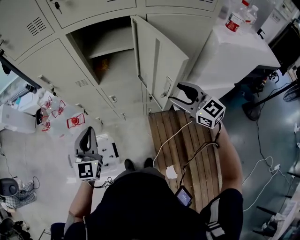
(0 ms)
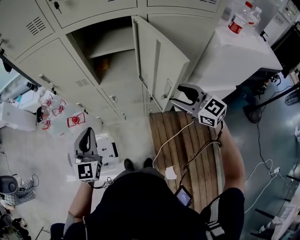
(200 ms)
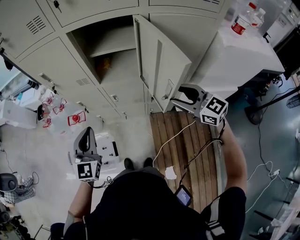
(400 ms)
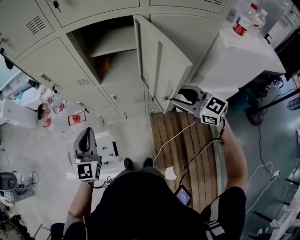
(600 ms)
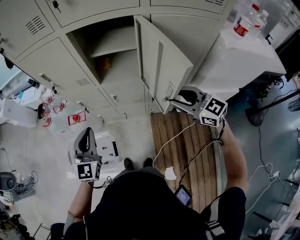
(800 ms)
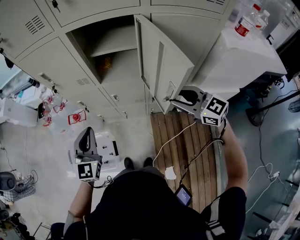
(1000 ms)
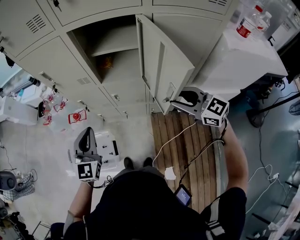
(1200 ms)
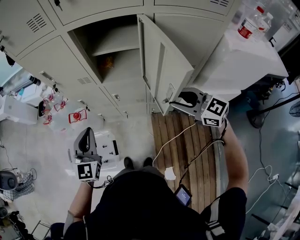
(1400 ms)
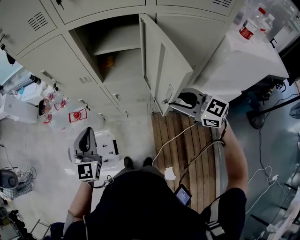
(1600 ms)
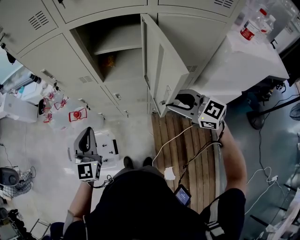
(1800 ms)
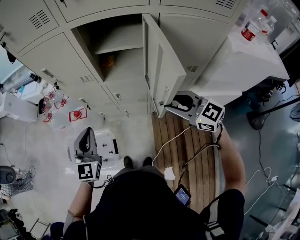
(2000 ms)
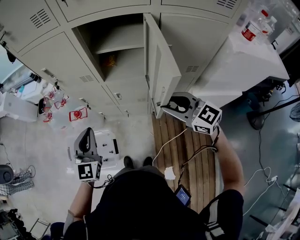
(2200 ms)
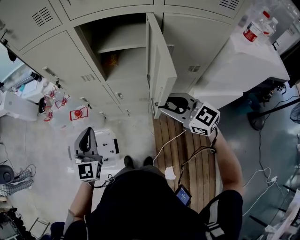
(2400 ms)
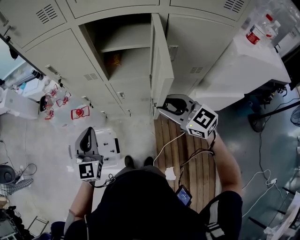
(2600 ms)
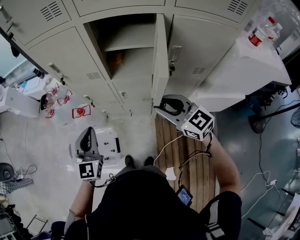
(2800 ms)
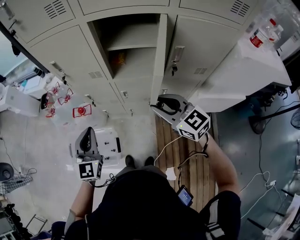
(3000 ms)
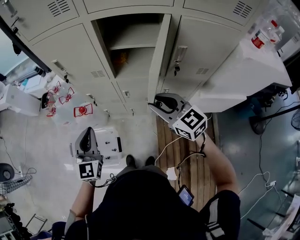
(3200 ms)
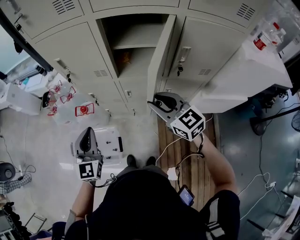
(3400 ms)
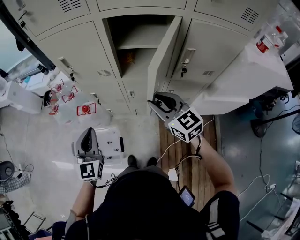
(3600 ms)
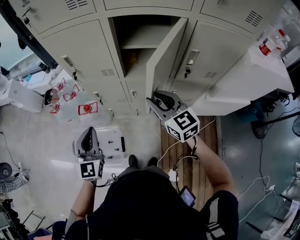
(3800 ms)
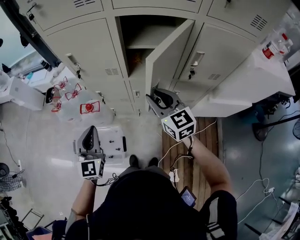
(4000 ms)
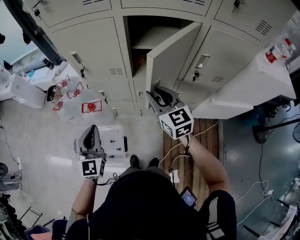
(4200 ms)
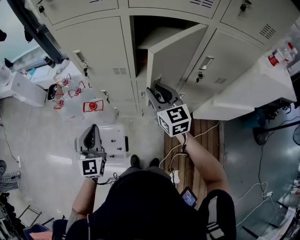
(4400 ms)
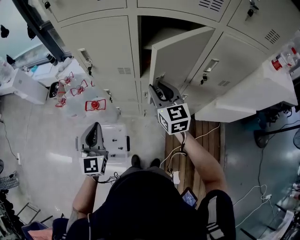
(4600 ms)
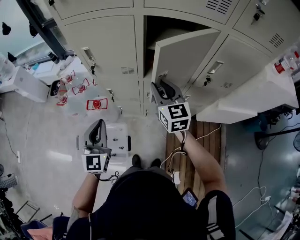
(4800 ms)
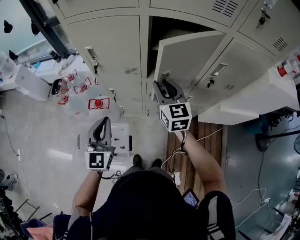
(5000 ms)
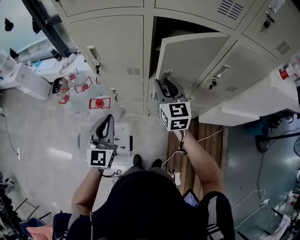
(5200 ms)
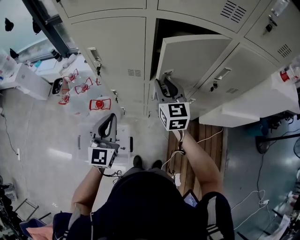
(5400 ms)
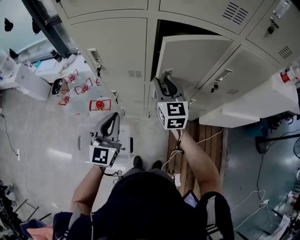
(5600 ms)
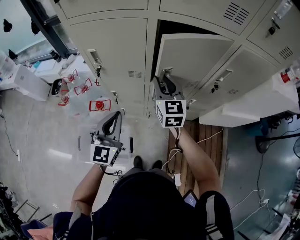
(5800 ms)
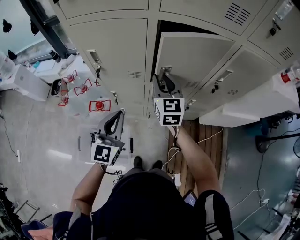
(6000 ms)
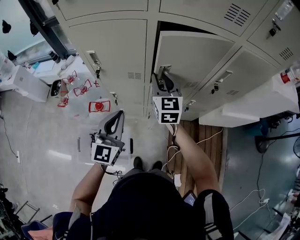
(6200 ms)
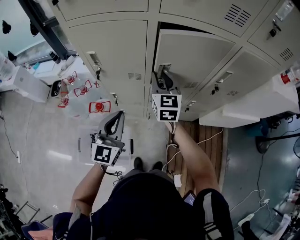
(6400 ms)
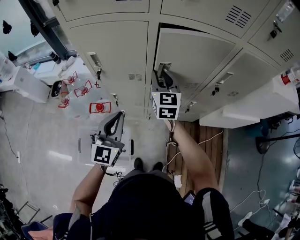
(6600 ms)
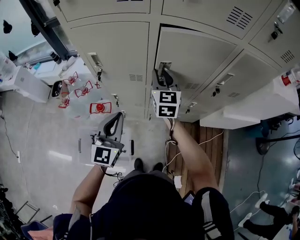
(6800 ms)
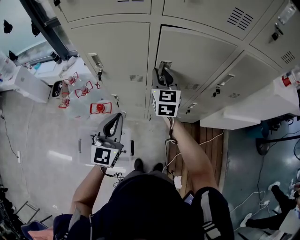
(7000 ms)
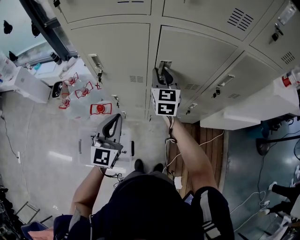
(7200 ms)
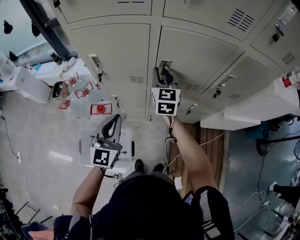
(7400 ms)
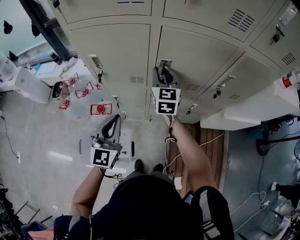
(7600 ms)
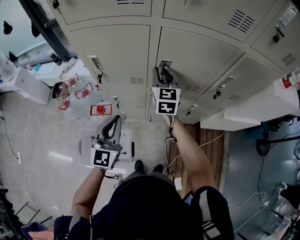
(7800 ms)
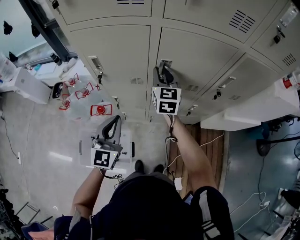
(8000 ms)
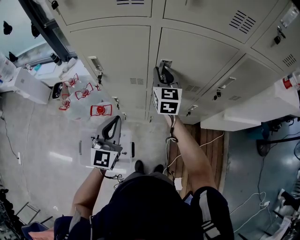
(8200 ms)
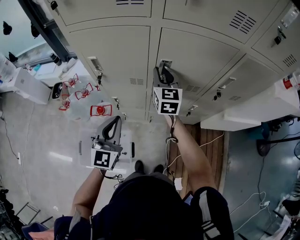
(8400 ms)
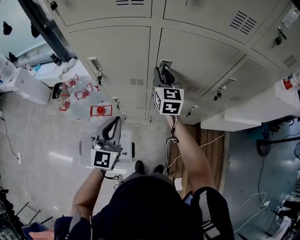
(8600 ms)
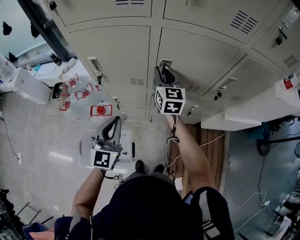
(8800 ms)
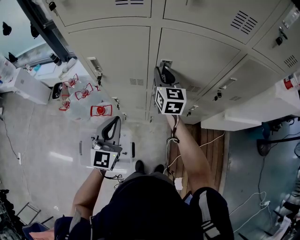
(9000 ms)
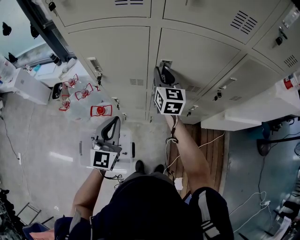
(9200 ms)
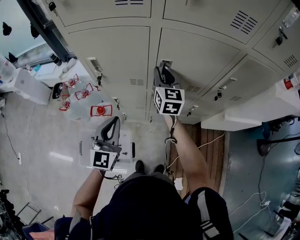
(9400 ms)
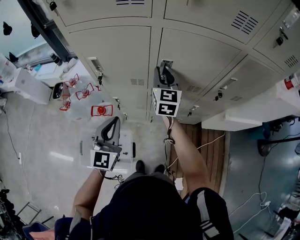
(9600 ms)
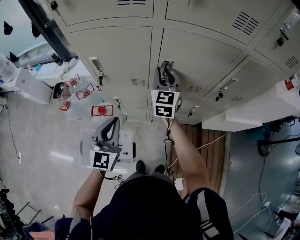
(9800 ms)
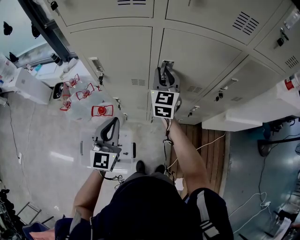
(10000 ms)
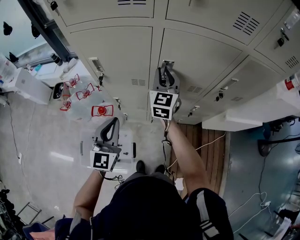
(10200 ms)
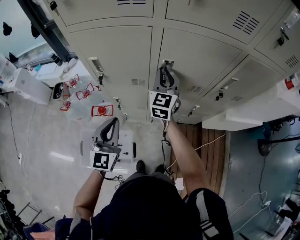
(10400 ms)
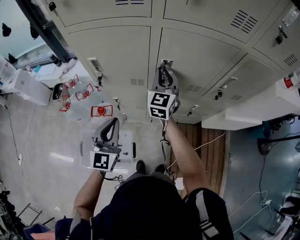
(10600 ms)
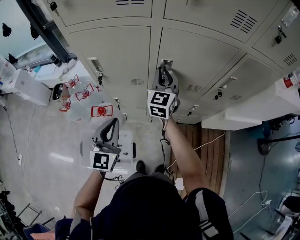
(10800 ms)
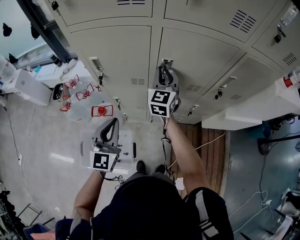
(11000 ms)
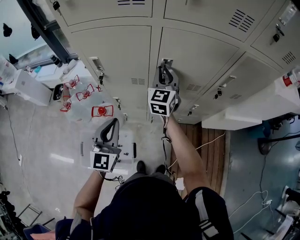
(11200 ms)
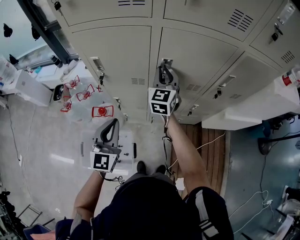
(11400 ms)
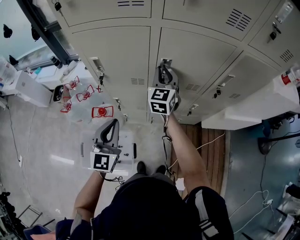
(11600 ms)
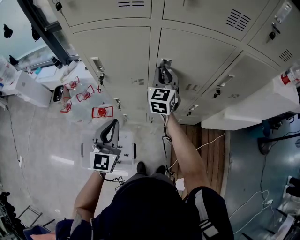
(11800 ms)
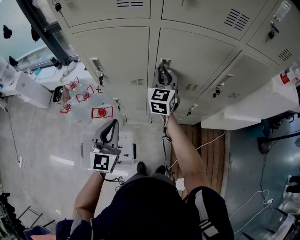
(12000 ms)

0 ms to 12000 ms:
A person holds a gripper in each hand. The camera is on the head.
0 ms to 1600 ms: The grippers move only a little.
1600 ms to 3000 ms: The left gripper heads to the left, covering roughly 5 cm. Meanwhile the right gripper heads to the left, covering approximately 10 cm.
3000 ms to 4400 ms: The right gripper travels forward and to the left by roughly 15 cm, and swivels some 20 degrees. Meanwhile the left gripper travels to the left by some 10 cm.
4400 ms to 6000 ms: The two grippers go roughly 10 cm forward.
6000 ms to 7600 ms: The right gripper is displaced forward by about 5 cm.
7600 ms to 9000 ms: The grippers move only a little.
9000 ms to 10400 ms: The right gripper changes its angle by roughly 20 degrees.
10400 ms to 12000 ms: There are only small adjustments of the grippers.

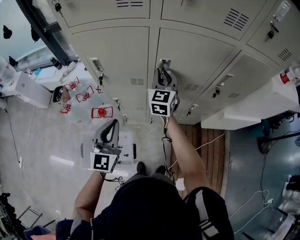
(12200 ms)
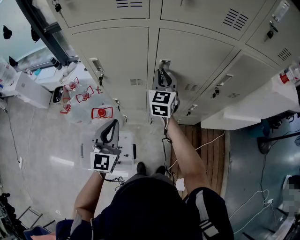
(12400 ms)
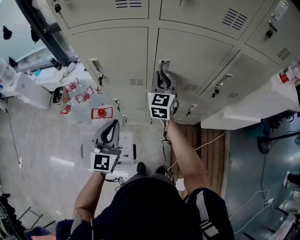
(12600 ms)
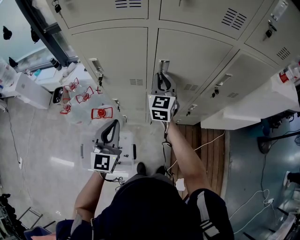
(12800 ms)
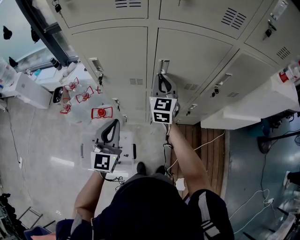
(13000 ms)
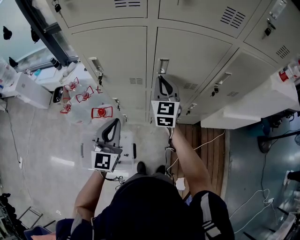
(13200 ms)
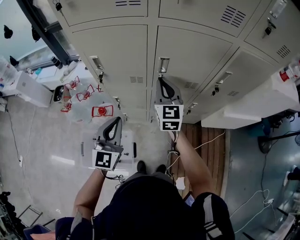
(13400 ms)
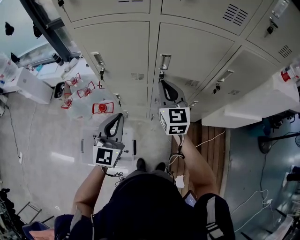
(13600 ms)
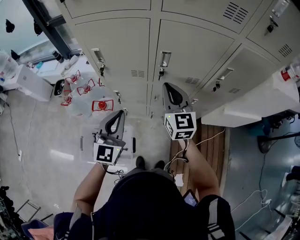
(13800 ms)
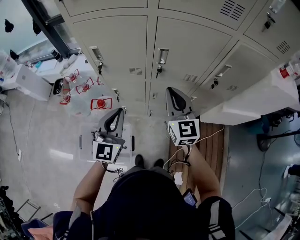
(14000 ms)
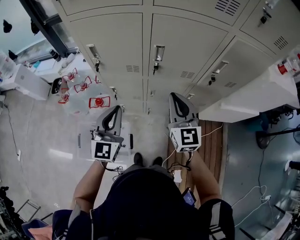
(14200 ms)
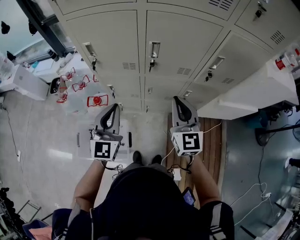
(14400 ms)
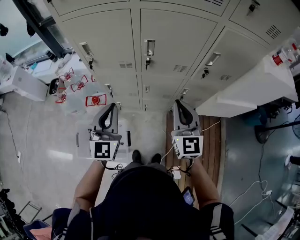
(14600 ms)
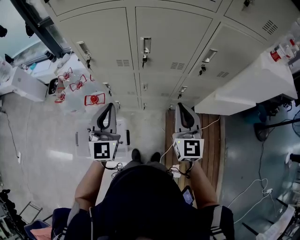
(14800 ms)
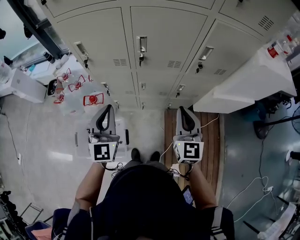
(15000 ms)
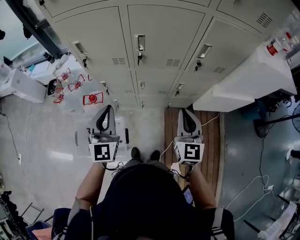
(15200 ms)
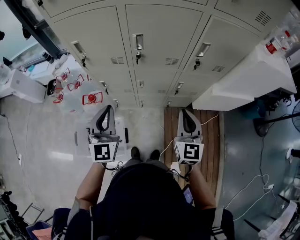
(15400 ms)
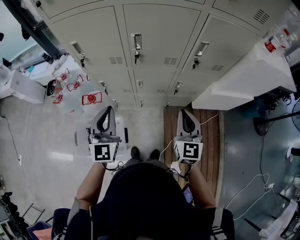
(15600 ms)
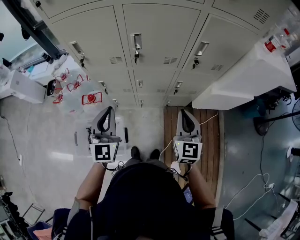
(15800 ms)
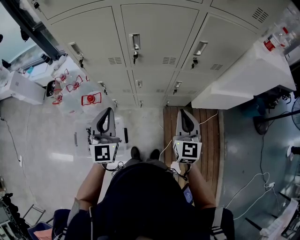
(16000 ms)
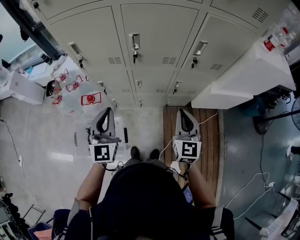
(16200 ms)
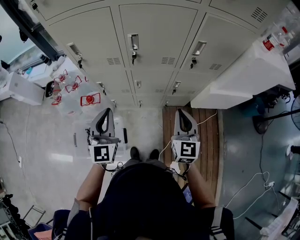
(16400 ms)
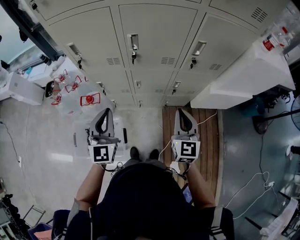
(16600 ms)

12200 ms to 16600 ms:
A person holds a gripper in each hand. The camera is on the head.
12200 ms to 13600 ms: The right gripper goes roughly 10 cm backward.
13600 ms to 15200 ms: The right gripper is displaced backward and to the right by some 25 cm. Meanwhile the left gripper shifts approximately 5 cm backward.
15200 ms to 16600 ms: The grippers move only a little.

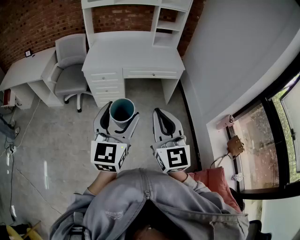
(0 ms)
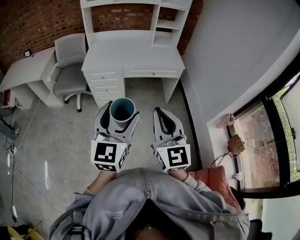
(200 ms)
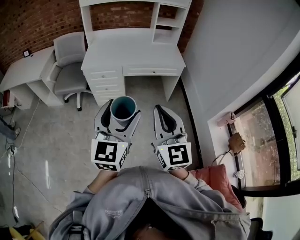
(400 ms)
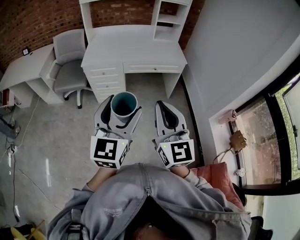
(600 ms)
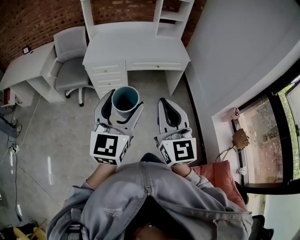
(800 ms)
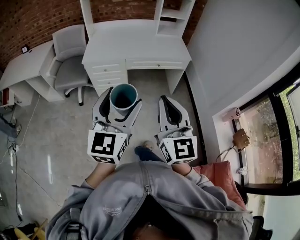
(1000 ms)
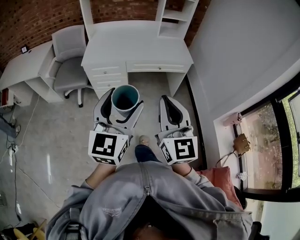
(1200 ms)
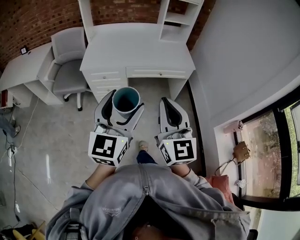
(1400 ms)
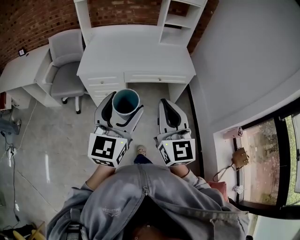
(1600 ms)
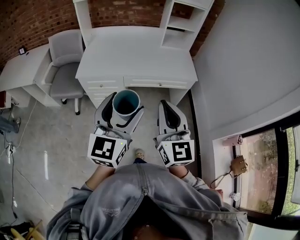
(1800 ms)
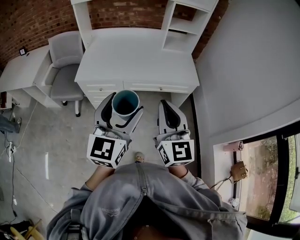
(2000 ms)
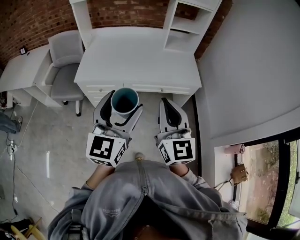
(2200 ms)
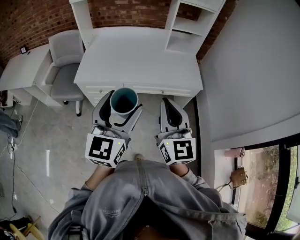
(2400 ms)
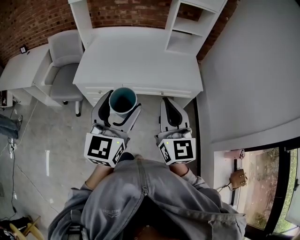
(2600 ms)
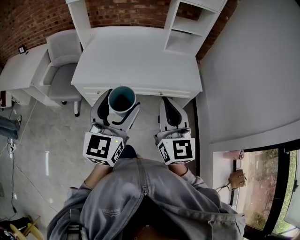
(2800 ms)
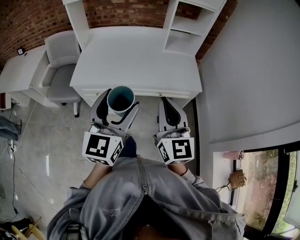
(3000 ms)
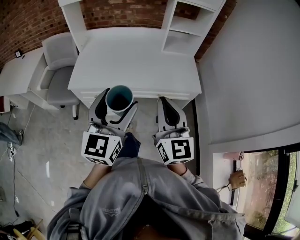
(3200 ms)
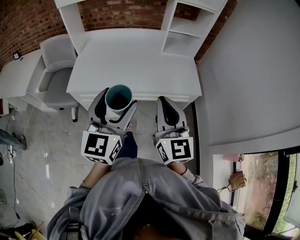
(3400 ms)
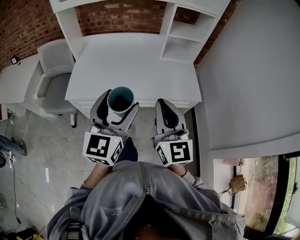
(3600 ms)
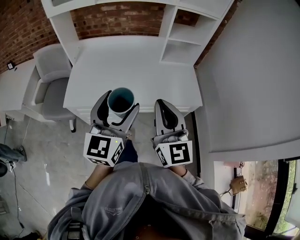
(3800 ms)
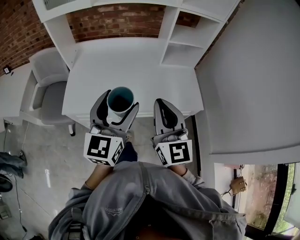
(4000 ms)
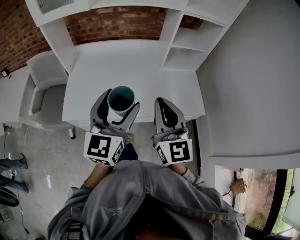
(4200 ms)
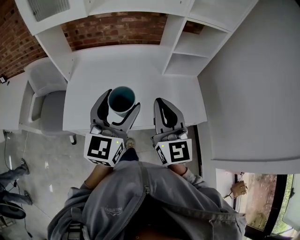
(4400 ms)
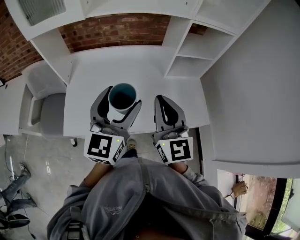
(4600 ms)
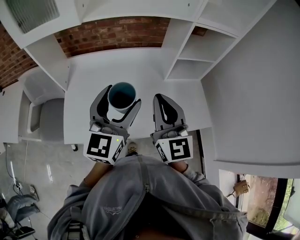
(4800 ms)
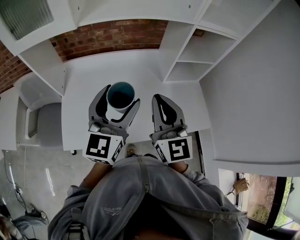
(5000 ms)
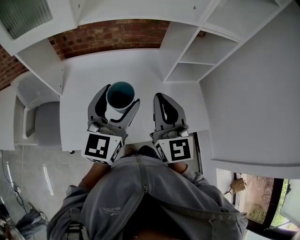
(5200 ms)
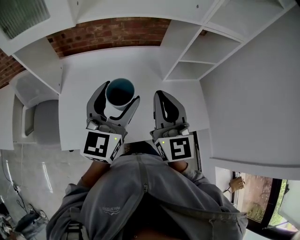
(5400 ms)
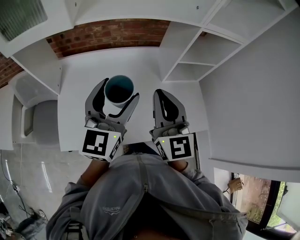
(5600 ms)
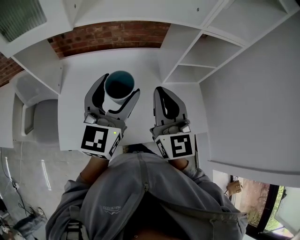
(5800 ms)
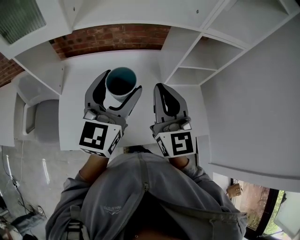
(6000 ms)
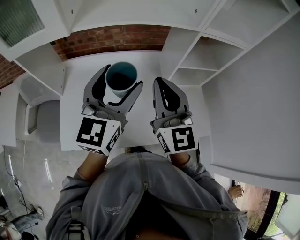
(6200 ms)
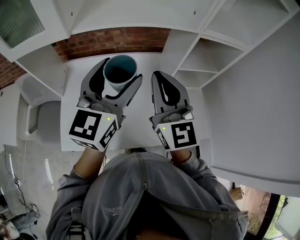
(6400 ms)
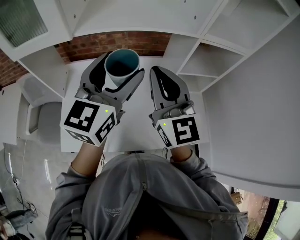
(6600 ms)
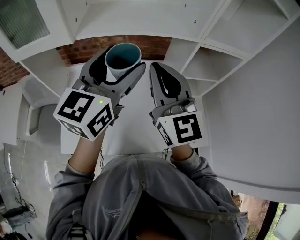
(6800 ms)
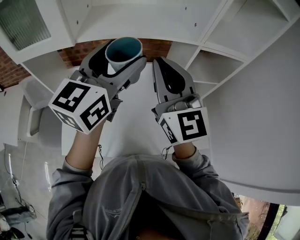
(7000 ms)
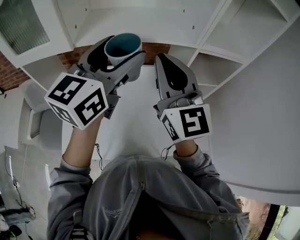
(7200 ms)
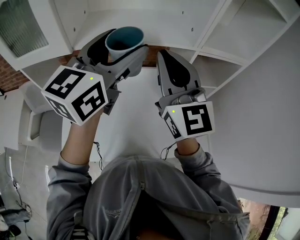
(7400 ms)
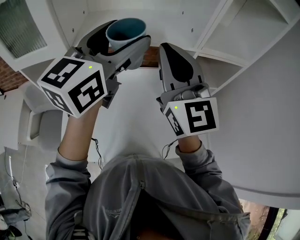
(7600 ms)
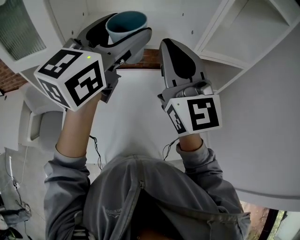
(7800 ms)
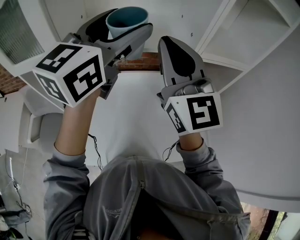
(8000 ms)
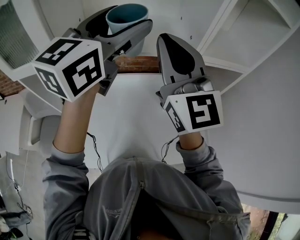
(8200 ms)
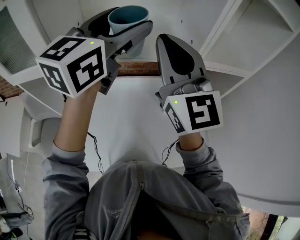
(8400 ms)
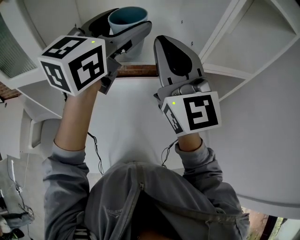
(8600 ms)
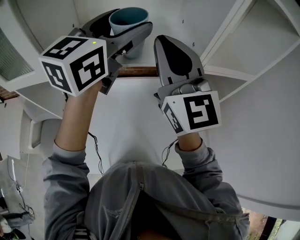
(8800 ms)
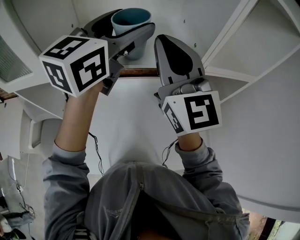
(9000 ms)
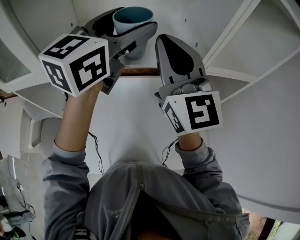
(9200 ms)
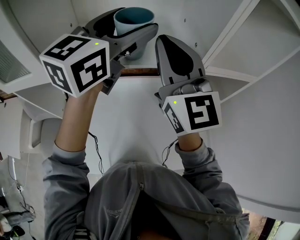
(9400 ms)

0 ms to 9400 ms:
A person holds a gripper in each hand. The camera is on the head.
0 ms to 1600 ms: The two grippers go approximately 20 cm forward.
1600 ms to 3200 ms: The grippers both shift forward by some 20 cm.
3200 ms to 4800 ms: Both grippers move forward, roughly 35 cm.
4800 ms to 6200 ms: Both grippers travel together forward, roughly 10 cm.
6200 ms to 7800 ms: Both grippers move upward and forward, about 20 cm.
7800 ms to 9400 ms: The two grippers go some 10 cm forward.
